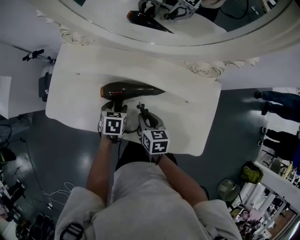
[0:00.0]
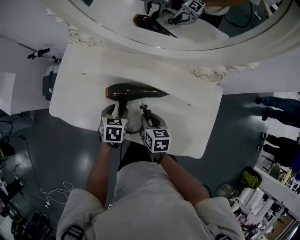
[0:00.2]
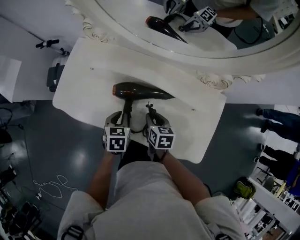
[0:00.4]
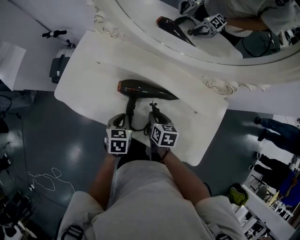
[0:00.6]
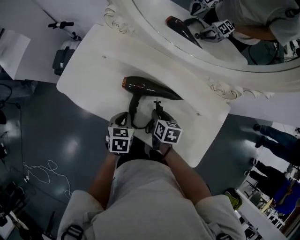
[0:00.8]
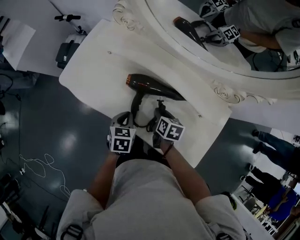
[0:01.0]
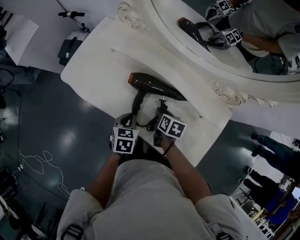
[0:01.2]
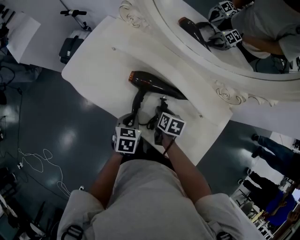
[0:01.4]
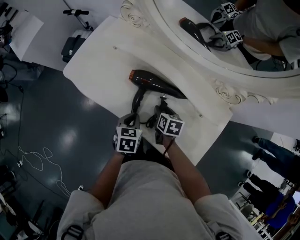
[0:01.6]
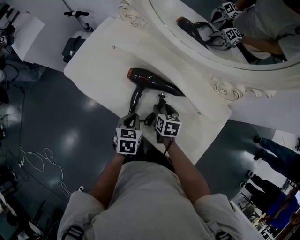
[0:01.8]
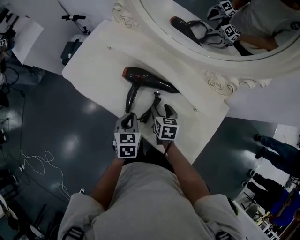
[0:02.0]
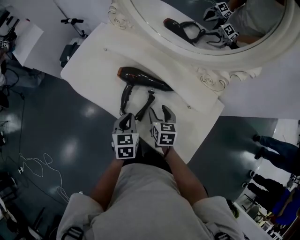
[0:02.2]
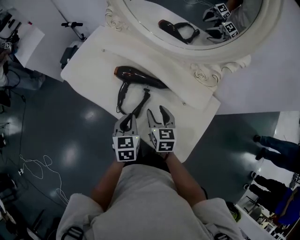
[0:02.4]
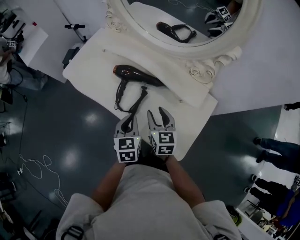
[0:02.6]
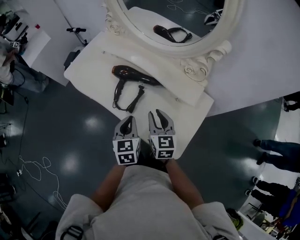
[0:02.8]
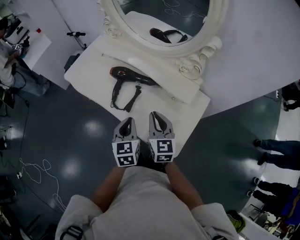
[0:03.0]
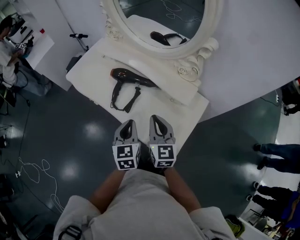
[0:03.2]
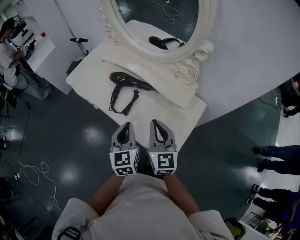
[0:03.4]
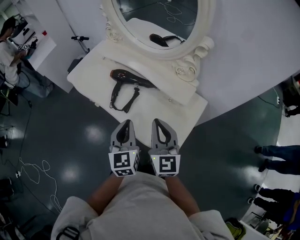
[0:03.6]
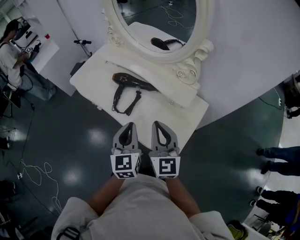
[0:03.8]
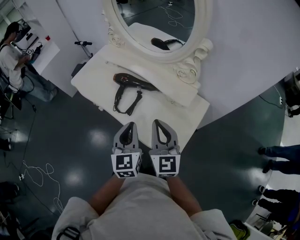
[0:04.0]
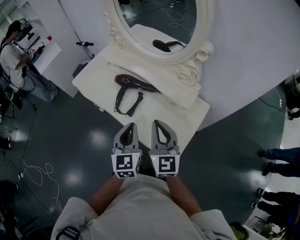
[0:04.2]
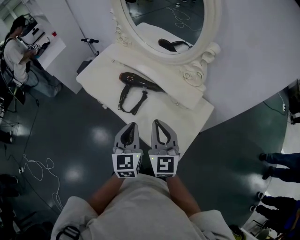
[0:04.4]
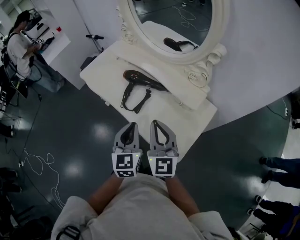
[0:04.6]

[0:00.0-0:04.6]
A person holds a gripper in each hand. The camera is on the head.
0:00.0 to 0:01.6: The left gripper travels backward by some 10 cm, swivels approximately 20 degrees, and closes its fingers.
0:01.6 to 0:03.0: The right gripper shifts some 25 cm upward and backward, tilts its fingers roughly 40 degrees upward, and closes. Meanwhile the left gripper travels upward, backward and to the right by approximately 20 cm, and swivels about 30 degrees.
0:03.0 to 0:04.6: The right gripper moves upward and backward, roughly 10 cm. The left gripper shifts roughly 10 cm upward.

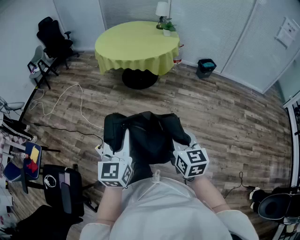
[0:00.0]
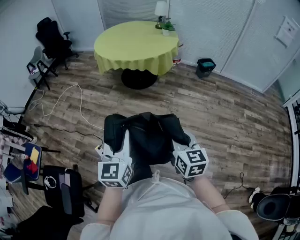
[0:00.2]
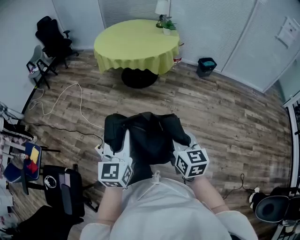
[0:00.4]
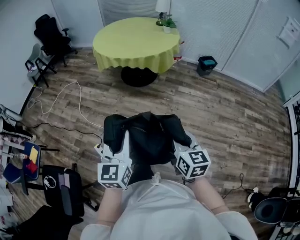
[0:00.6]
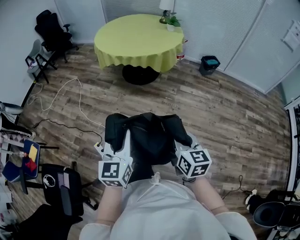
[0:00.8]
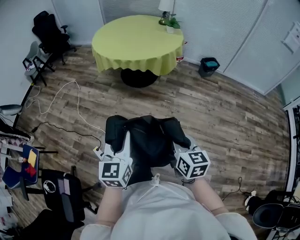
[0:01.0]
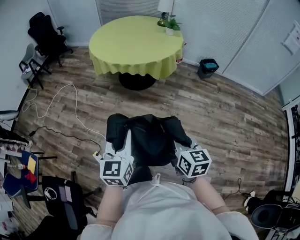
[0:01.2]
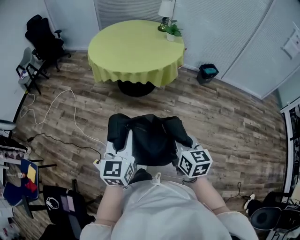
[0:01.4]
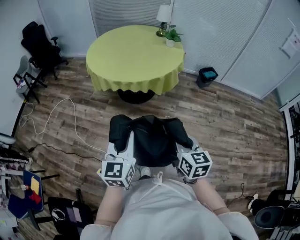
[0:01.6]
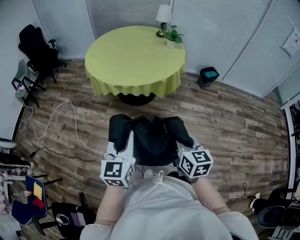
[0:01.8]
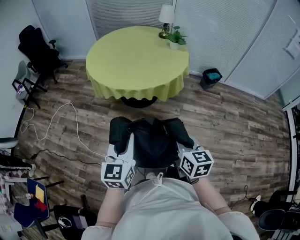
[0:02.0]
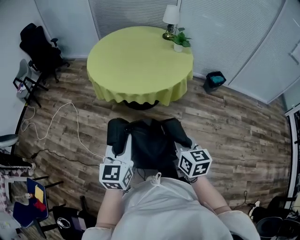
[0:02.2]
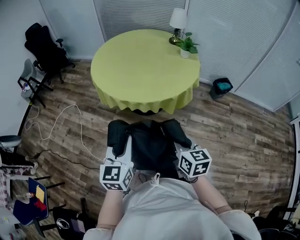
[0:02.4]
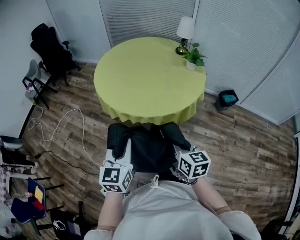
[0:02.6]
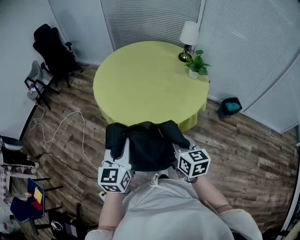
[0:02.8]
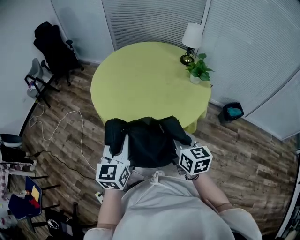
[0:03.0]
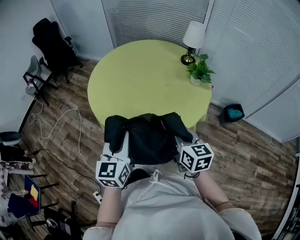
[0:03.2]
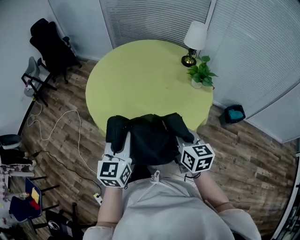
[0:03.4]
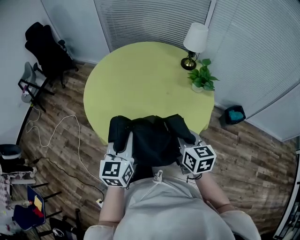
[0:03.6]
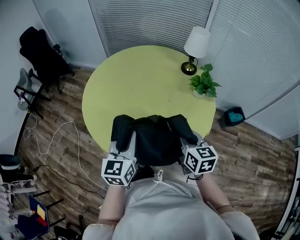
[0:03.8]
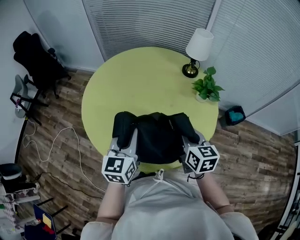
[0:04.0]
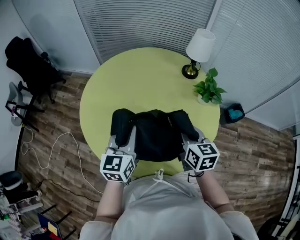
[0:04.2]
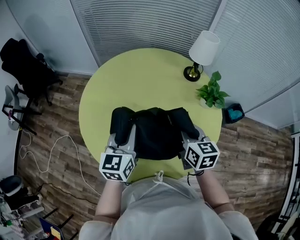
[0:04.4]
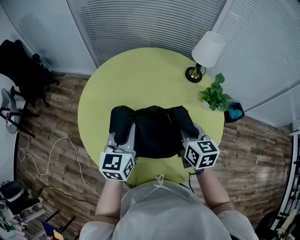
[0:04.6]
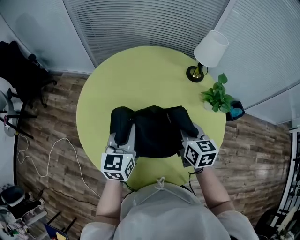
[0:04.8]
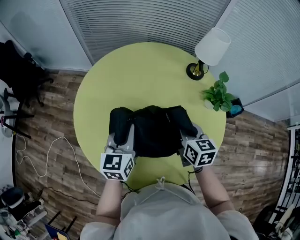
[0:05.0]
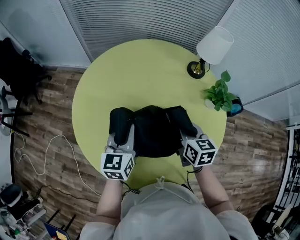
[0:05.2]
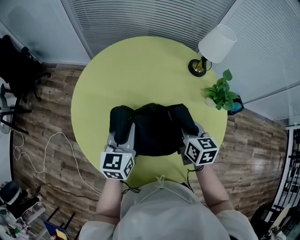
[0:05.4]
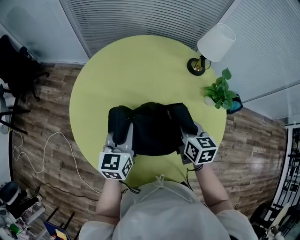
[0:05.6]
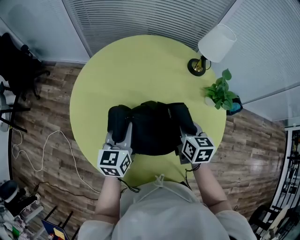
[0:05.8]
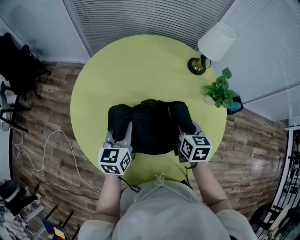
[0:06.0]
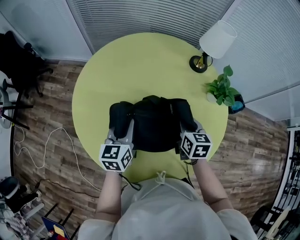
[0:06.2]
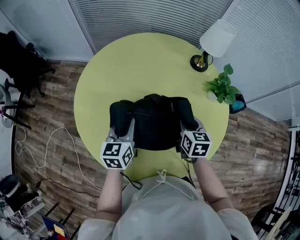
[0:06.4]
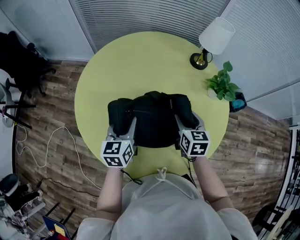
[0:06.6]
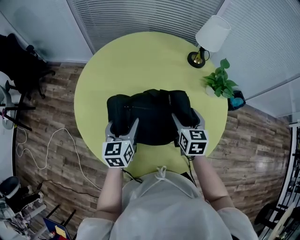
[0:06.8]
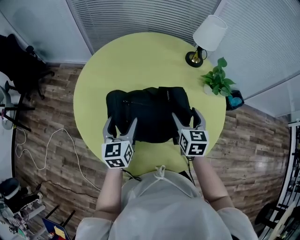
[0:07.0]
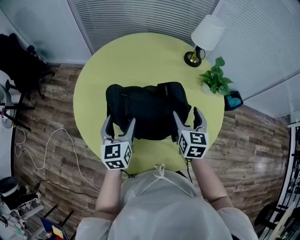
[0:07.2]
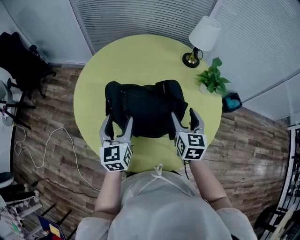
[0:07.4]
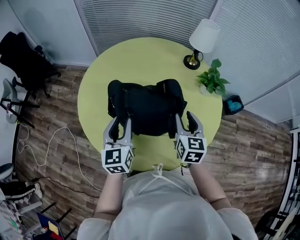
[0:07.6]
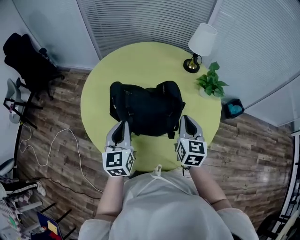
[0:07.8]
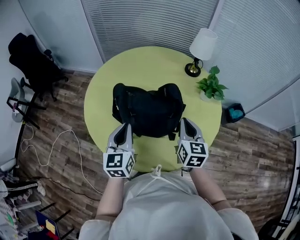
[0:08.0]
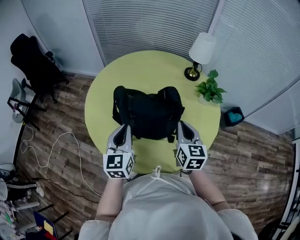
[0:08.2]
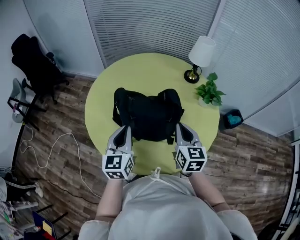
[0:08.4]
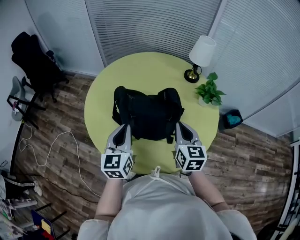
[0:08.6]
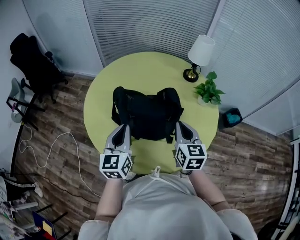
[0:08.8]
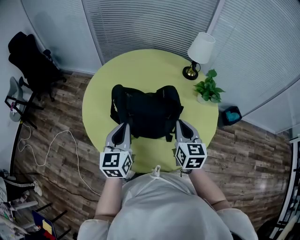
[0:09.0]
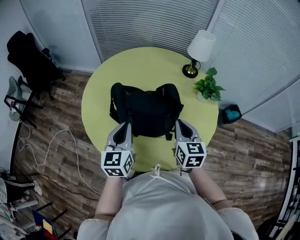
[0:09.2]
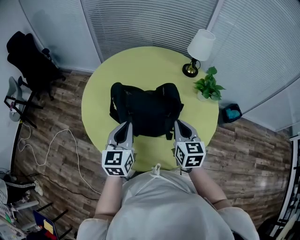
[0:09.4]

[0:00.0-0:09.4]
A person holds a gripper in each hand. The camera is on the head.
0:00.0 to 0:01.6: The two grippers go roughly 30 cm forward.
0:01.6 to 0:03.2: Both grippers are carried forward, about 50 cm.
0:03.2 to 0:04.8: The two grippers go roughly 40 cm forward.
0:04.8 to 0:06.2: Both grippers move downward, approximately 10 cm.
0:06.2 to 0:07.8: Both grippers travel together backward and upward, roughly 15 cm. The right gripper opens, then closes once more. The left gripper opens, then closes once more.
0:07.8 to 0:09.4: The grippers make only small movements.

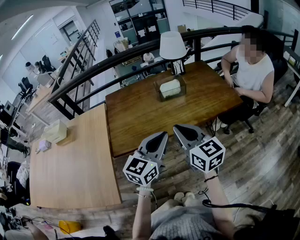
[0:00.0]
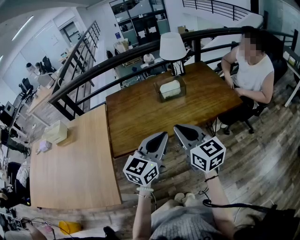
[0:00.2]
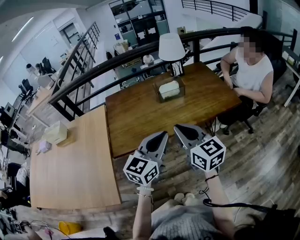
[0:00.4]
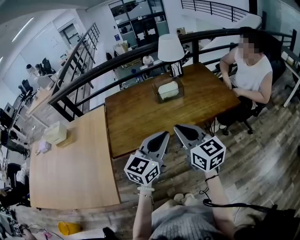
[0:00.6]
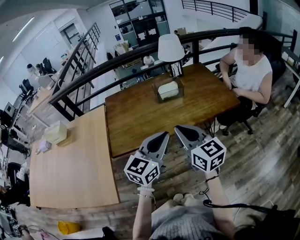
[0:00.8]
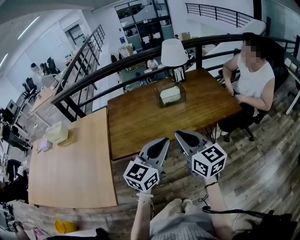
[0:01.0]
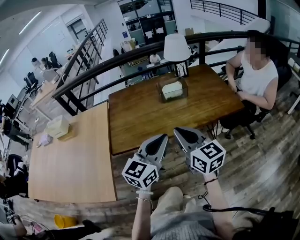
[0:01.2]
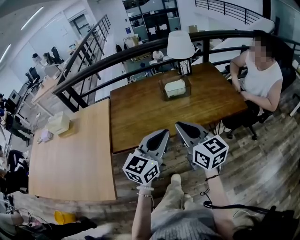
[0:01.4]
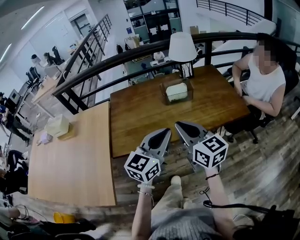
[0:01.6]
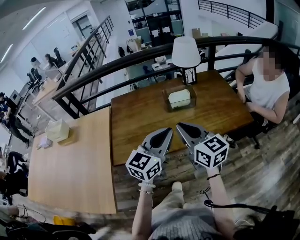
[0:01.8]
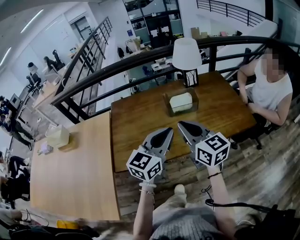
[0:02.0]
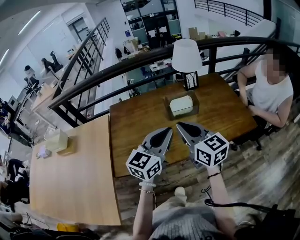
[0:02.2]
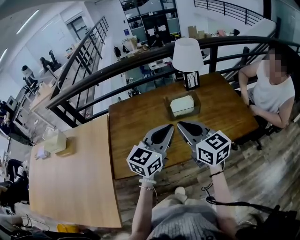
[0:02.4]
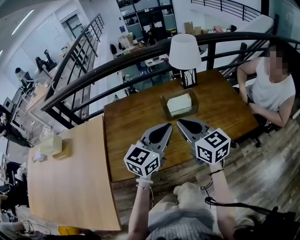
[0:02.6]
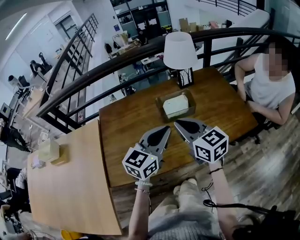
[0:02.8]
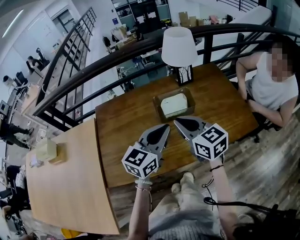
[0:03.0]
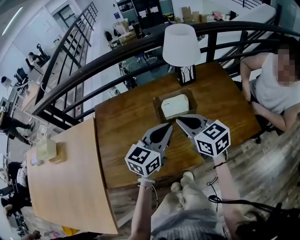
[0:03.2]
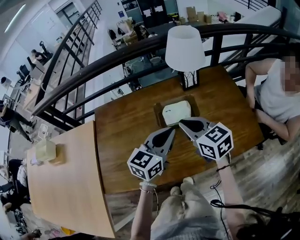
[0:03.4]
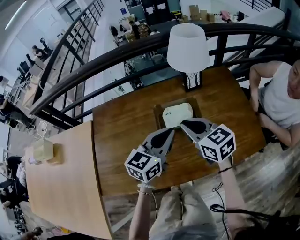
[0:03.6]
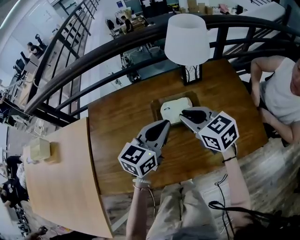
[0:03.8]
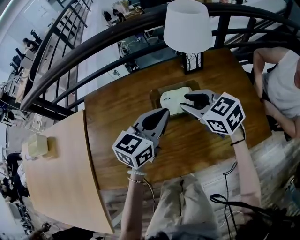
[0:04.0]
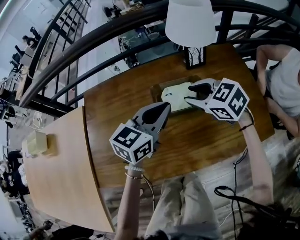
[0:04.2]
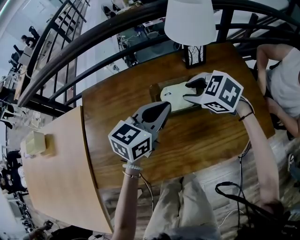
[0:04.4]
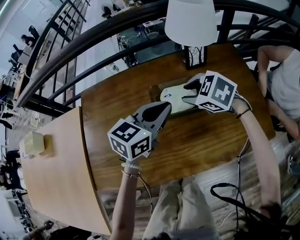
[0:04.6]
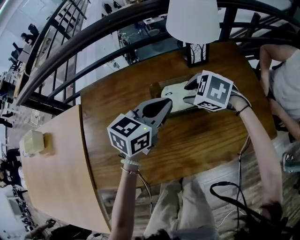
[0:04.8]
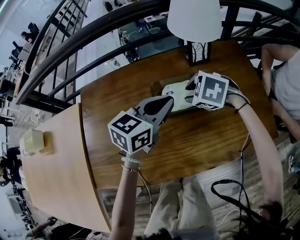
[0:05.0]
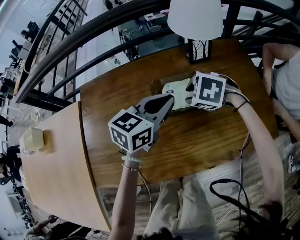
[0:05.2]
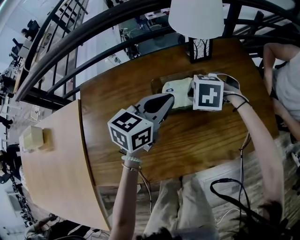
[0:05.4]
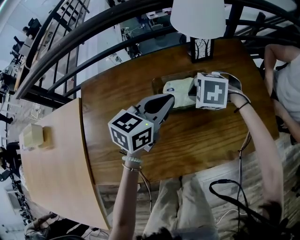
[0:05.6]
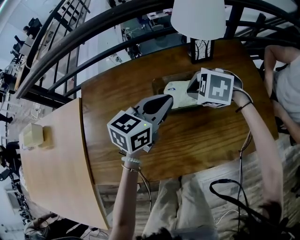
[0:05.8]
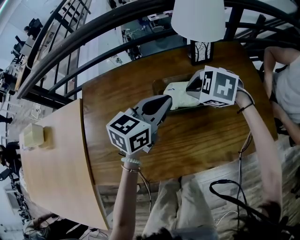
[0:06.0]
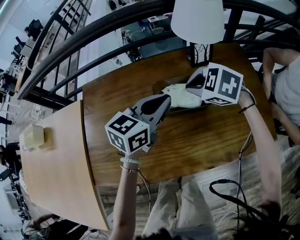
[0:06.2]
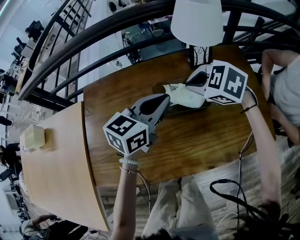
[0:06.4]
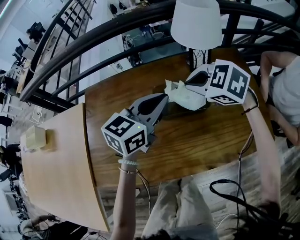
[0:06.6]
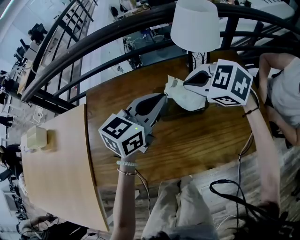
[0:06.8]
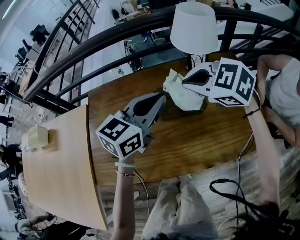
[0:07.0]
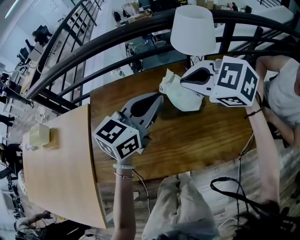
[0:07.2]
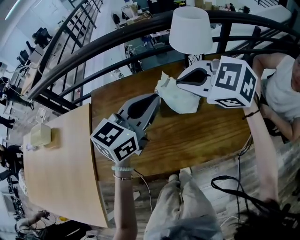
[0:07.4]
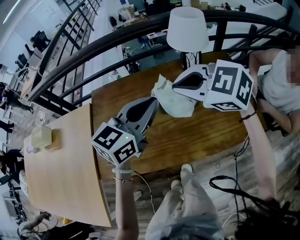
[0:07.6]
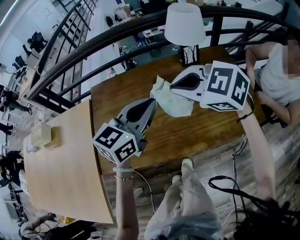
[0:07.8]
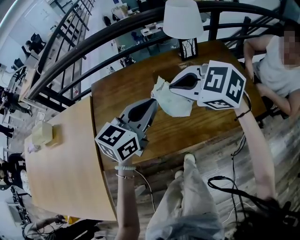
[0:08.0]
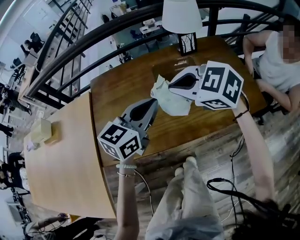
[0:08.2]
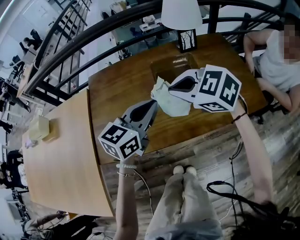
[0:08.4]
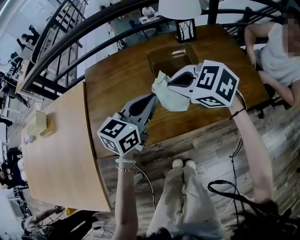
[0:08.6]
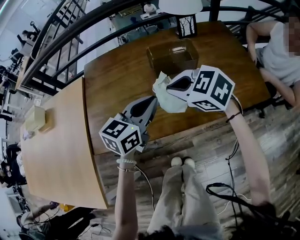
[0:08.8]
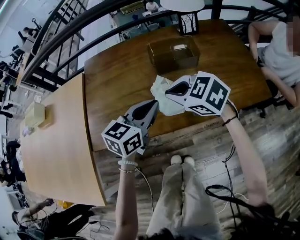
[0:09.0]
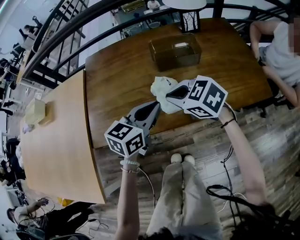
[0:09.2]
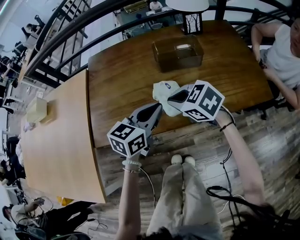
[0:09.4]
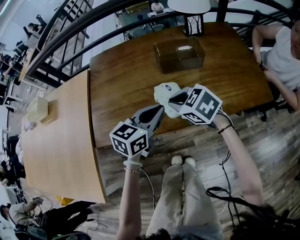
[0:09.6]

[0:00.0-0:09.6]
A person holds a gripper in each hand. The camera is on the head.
0:00.0 to 0:01.6: There are only small adjustments of the grippers.
0:01.6 to 0:03.2: Both grippers travel together forward, approximately 25 cm.
0:03.2 to 0:04.8: The grippers both shift forward and downward by about 15 cm. The right gripper tilts its fingers approximately 40 degrees downward, and opens.
0:04.8 to 0:06.4: The right gripper travels upward by about 5 cm, and closes.
0:06.4 to 0:08.0: The right gripper moves backward, upward and to the left, about 20 cm. Meanwhile the left gripper moves backward, to the left and upward, some 15 cm.
0:08.0 to 0:09.6: The right gripper heads downward, covering roughly 20 cm, and rotates approximately 20 degrees. The left gripper is displaced downward and backward by about 15 cm.
